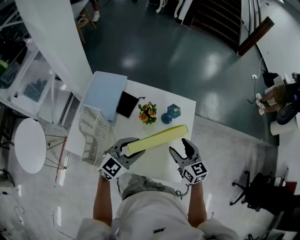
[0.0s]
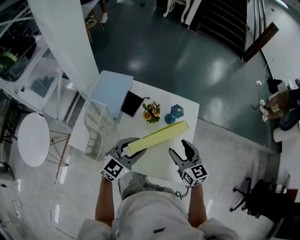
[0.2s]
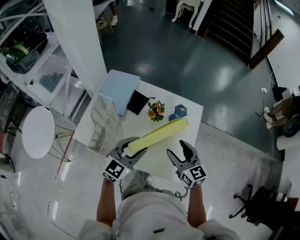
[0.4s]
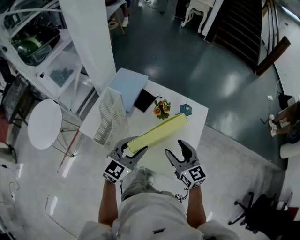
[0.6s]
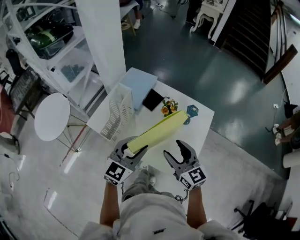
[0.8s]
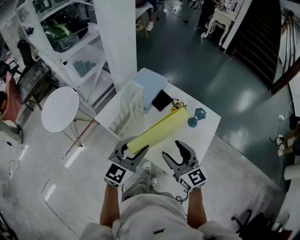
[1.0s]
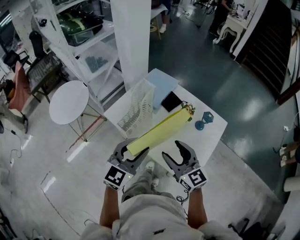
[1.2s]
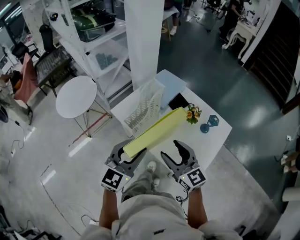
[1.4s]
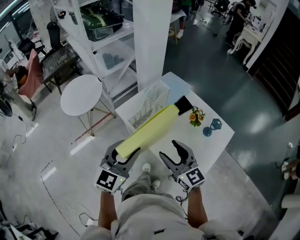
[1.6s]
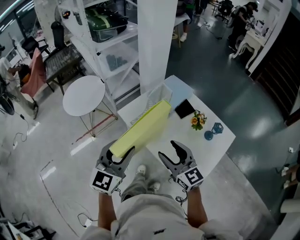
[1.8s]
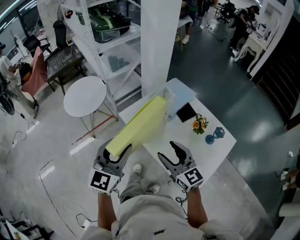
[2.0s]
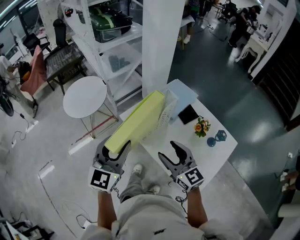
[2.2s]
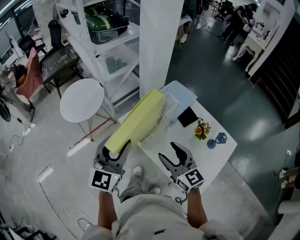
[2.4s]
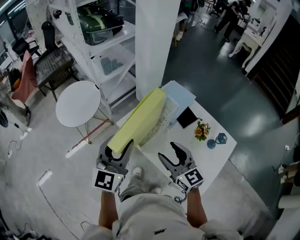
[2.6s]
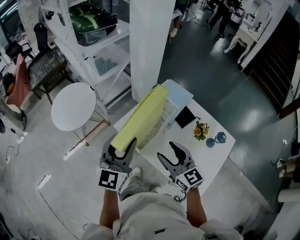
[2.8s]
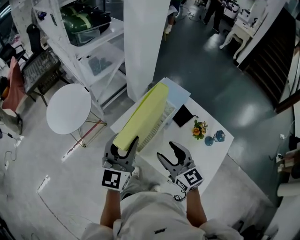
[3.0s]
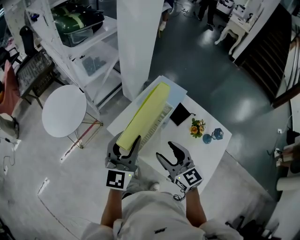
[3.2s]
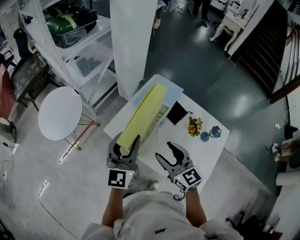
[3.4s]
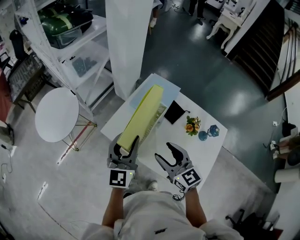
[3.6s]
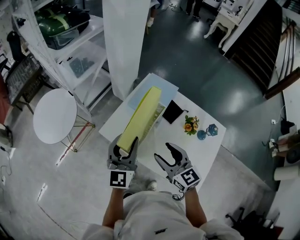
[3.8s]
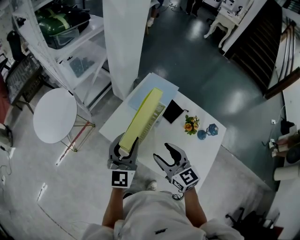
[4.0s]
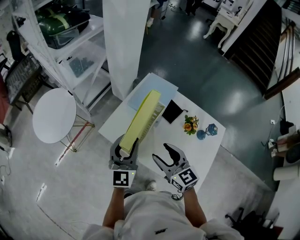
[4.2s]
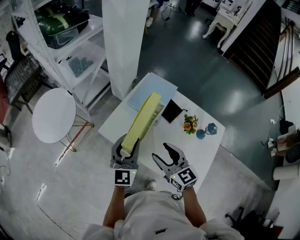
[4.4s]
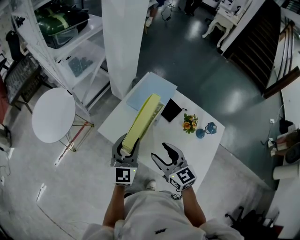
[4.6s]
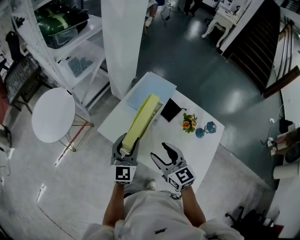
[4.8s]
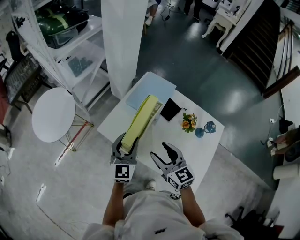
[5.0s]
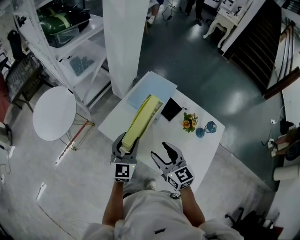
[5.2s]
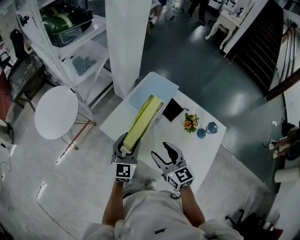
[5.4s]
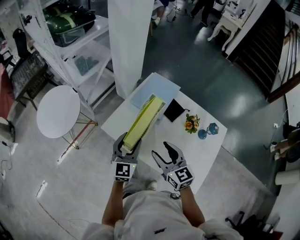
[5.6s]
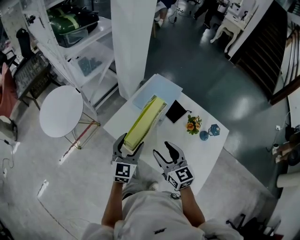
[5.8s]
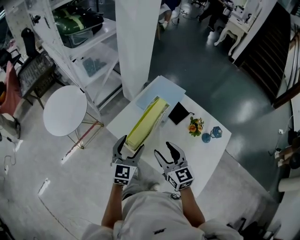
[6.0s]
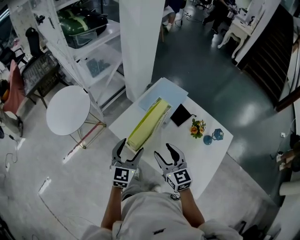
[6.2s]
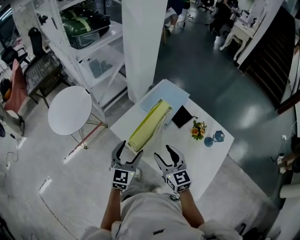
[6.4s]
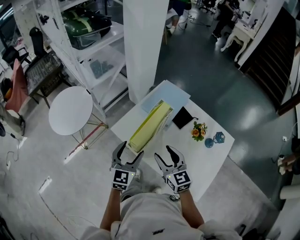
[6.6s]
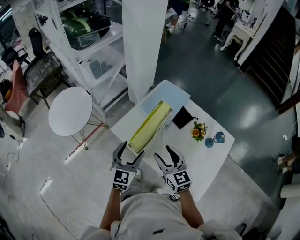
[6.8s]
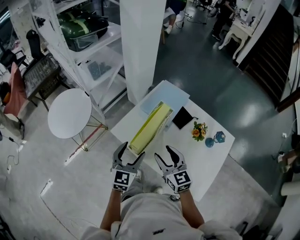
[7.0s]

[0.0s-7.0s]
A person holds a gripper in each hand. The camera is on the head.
0.0s to 1.4s: The left gripper moves some 25 cm, and turns by about 50 degrees; the right gripper shifts by about 30 cm, and swivels some 40 degrees.
1.4s to 2.8s: The grippers both shift forward and to the left by approximately 15 cm.
2.8s to 4.2s: The left gripper heads downward, forward and to the right, covering roughly 10 cm. The right gripper ends up some 5 cm from where it was.
4.2s to 5.6s: The left gripper shifts about 5 cm downward.
5.6s to 7.0s: The grippers stay close to where they were, moving slightly.

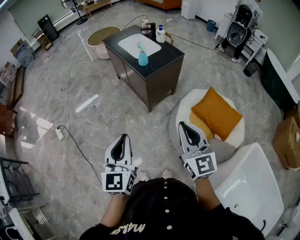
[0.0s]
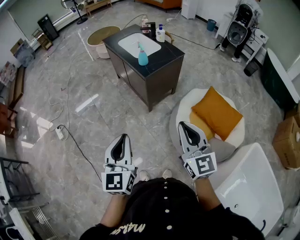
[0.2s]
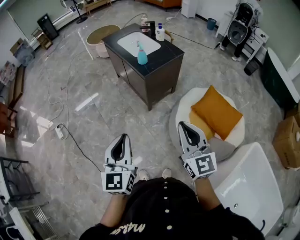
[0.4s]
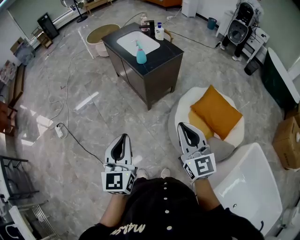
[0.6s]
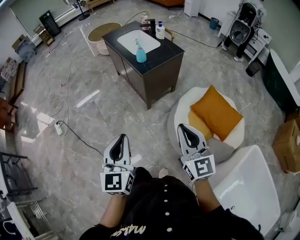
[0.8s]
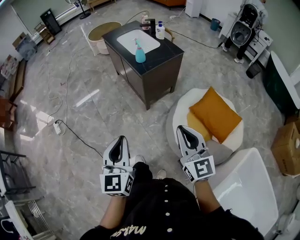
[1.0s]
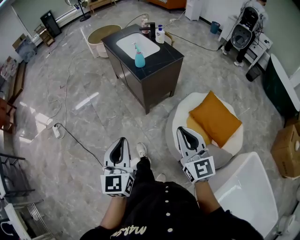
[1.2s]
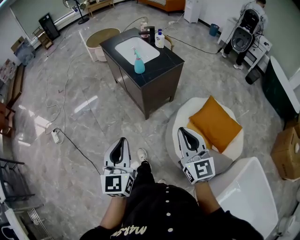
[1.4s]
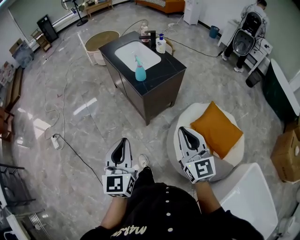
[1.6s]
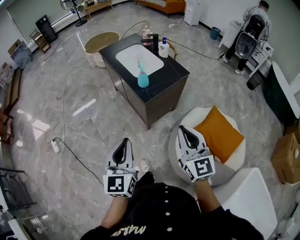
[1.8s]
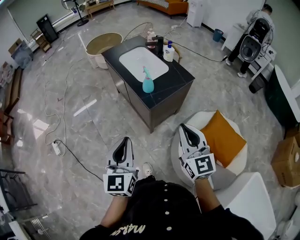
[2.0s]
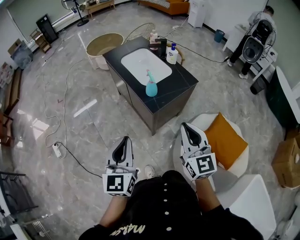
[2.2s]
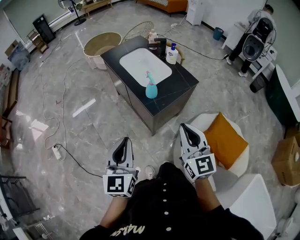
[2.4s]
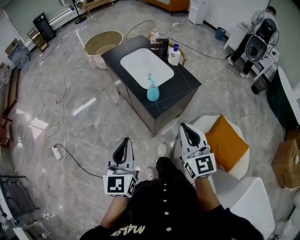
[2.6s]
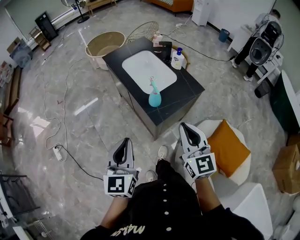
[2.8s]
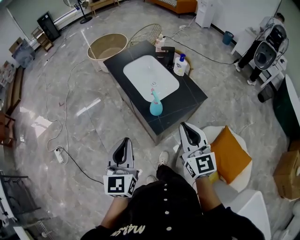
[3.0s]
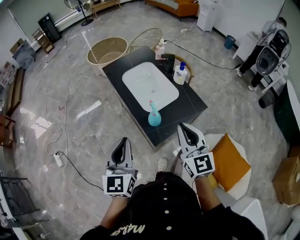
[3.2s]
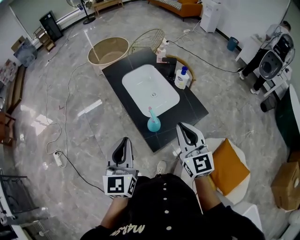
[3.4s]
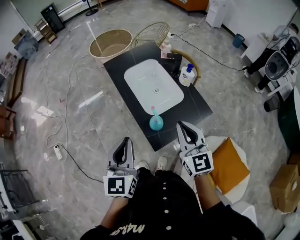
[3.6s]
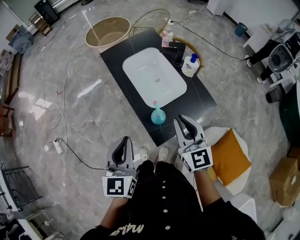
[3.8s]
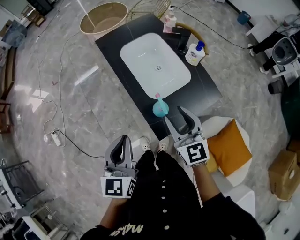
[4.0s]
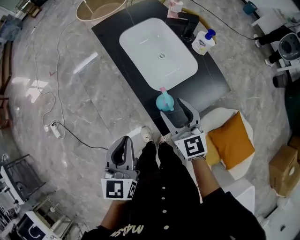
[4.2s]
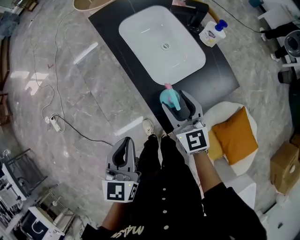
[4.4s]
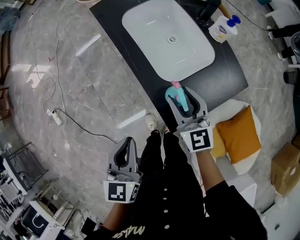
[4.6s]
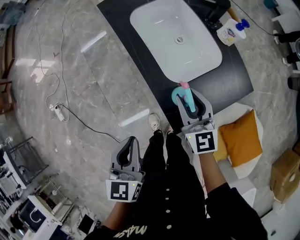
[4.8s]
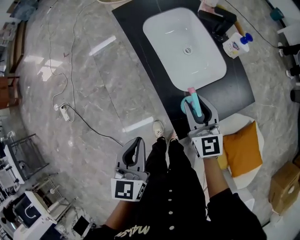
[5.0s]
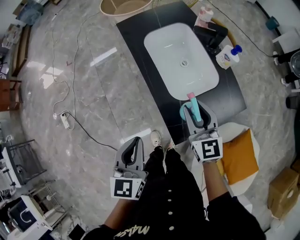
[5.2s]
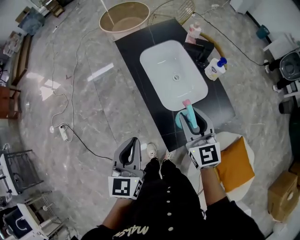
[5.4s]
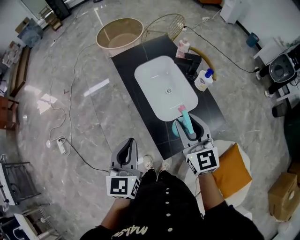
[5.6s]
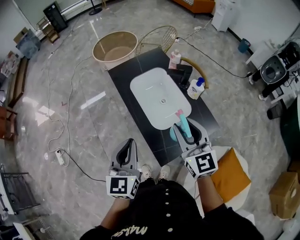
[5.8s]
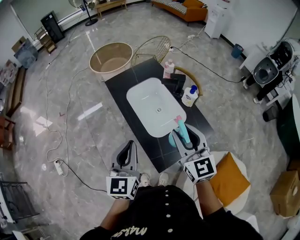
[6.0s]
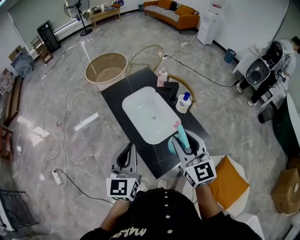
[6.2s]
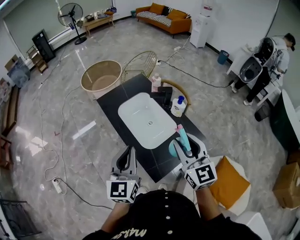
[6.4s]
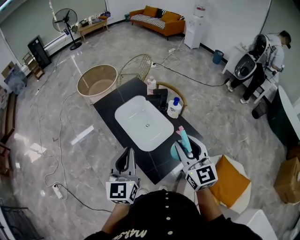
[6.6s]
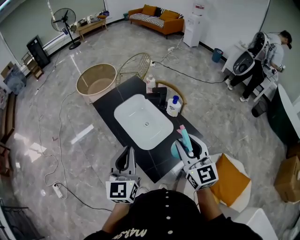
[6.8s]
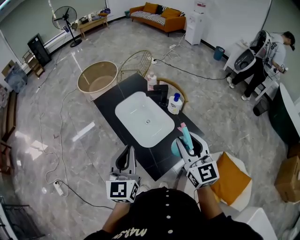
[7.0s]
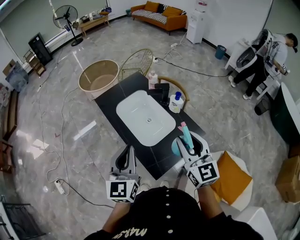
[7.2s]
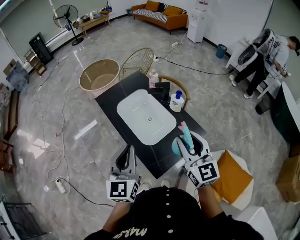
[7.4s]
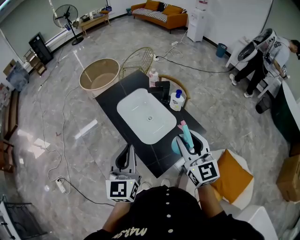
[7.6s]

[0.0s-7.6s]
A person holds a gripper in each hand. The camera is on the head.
0.0s to 1.6s: The grippers both shift forward by about 15 cm.
1.6s to 3.0s: The grippers both shift forward by approximately 30 cm.
3.0s to 4.6s: The left gripper travels downward and forward by roughly 20 cm, and rotates roughly 20 degrees, while the right gripper is displaced forward and downward by approximately 30 cm, and opens up.
4.6s to 6.0s: The left gripper is displaced upward and forward by roughly 20 cm, and turns by about 20 degrees, while the right gripper moves upward, some 25 cm.
6.0s to 7.6s: The right gripper goes about 5 cm to the right.

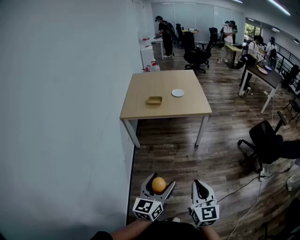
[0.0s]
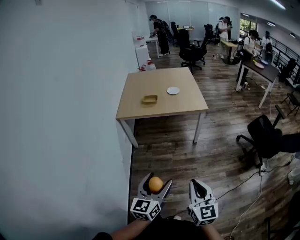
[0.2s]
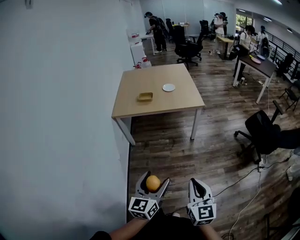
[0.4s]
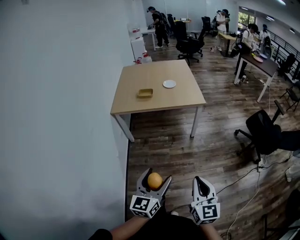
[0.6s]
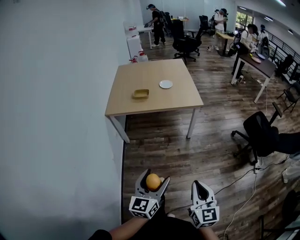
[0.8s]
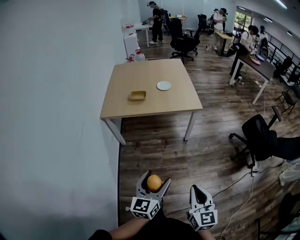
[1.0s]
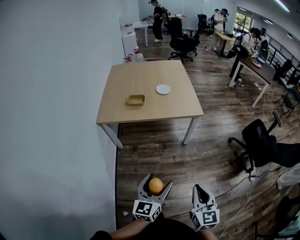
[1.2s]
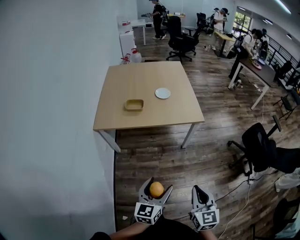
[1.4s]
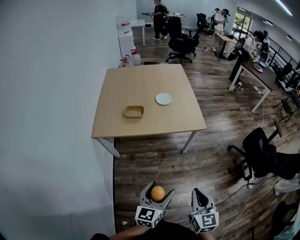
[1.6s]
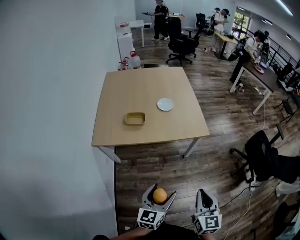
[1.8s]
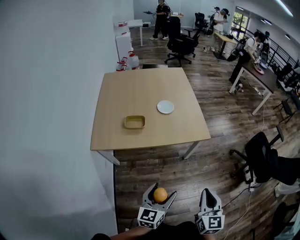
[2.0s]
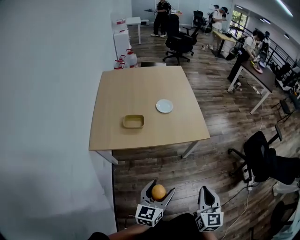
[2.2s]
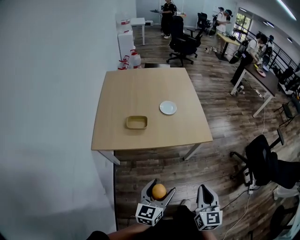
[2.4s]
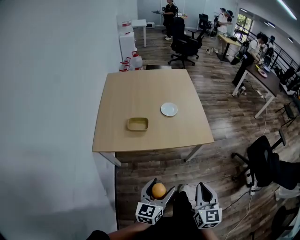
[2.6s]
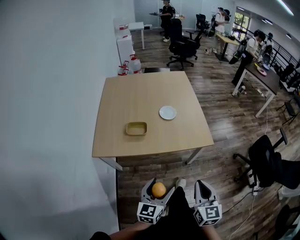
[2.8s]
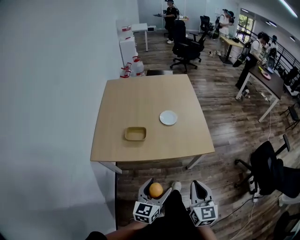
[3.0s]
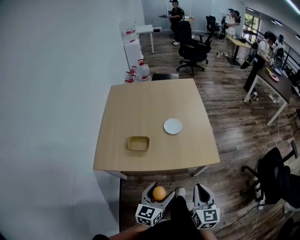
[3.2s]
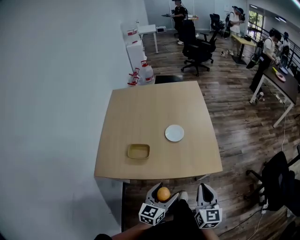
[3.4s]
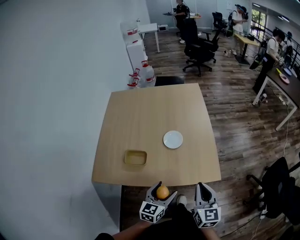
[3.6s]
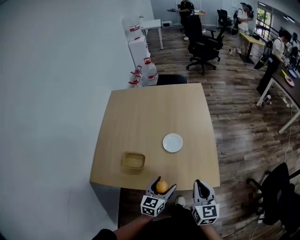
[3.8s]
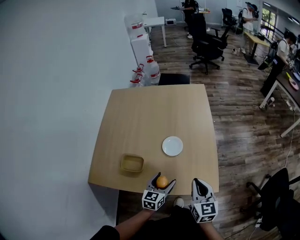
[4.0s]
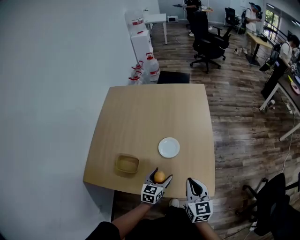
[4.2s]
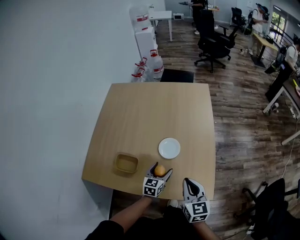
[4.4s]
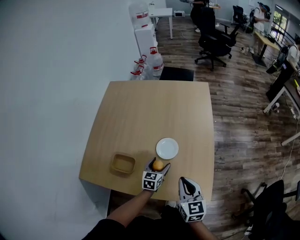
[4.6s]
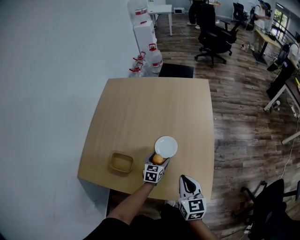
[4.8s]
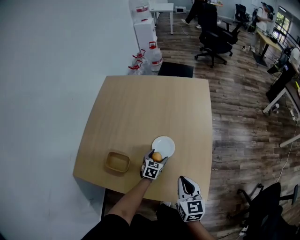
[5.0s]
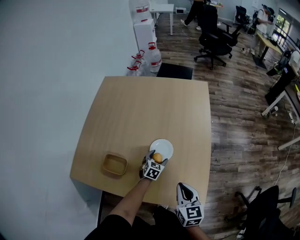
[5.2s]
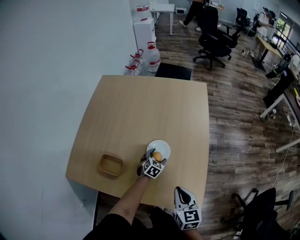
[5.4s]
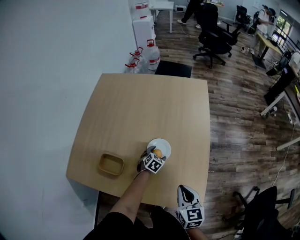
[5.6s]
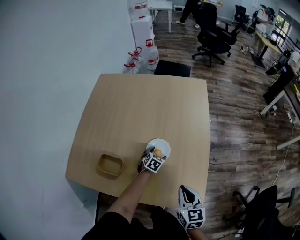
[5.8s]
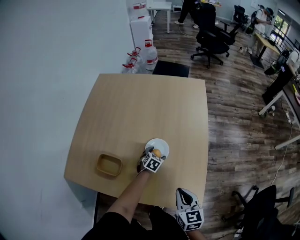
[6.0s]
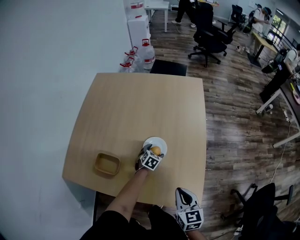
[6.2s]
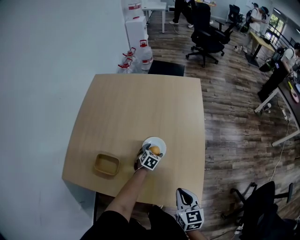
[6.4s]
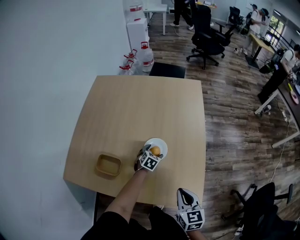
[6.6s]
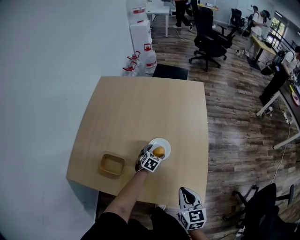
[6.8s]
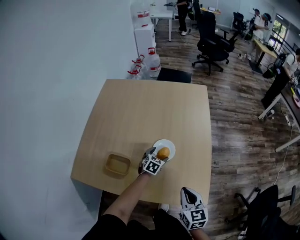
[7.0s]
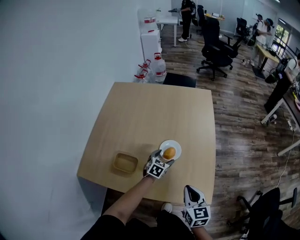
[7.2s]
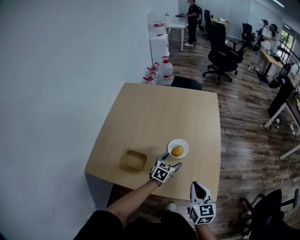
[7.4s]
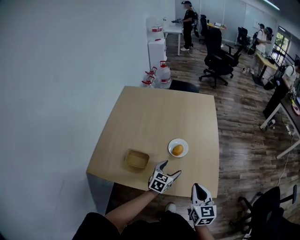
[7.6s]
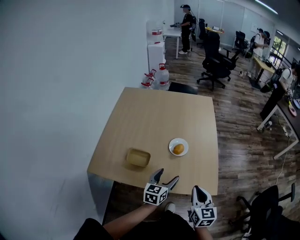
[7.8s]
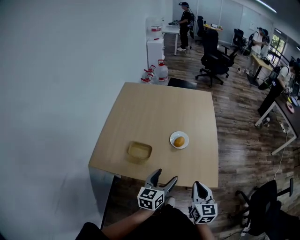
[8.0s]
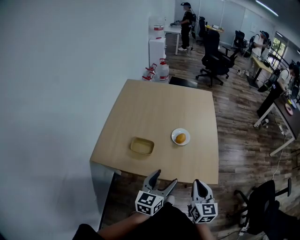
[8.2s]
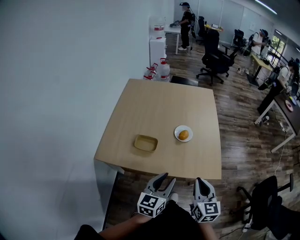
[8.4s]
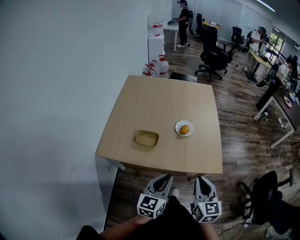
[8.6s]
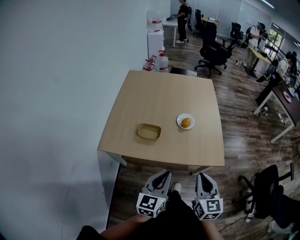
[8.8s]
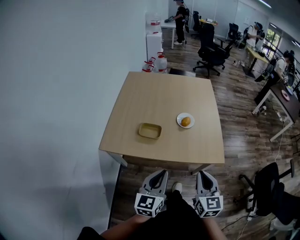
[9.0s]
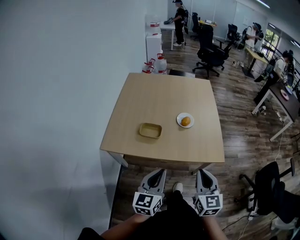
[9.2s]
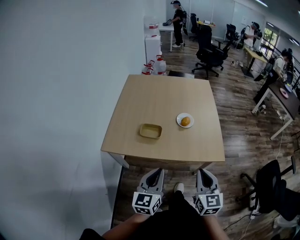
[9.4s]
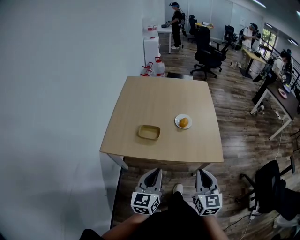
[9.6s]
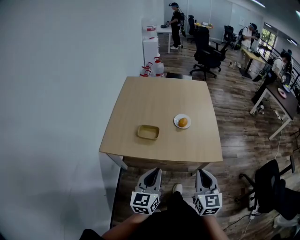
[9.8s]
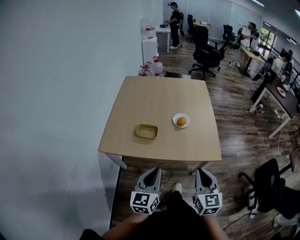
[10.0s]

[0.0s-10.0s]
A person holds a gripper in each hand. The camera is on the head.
0.0s to 1.4s: Both grippers move forward, roughly 25 cm.
1.4s to 2.8s: The two grippers go approximately 20 cm forward.
2.8s to 4.2s: Both grippers move forward, about 40 cm.
4.2s to 5.8s: The right gripper goes about 10 cm downward; the left gripper is displaced downward and forward by about 25 cm, and changes its angle by approximately 30 degrees.
5.8s to 7.2s: The right gripper moves about 5 cm. Meanwhile the left gripper heads upward, covering roughly 10 cm.
7.2s to 8.6s: The right gripper heads backward and upward, covering some 25 cm; the left gripper moves backward and upward, some 50 cm, angles its fingers upward, by about 30 degrees, and closes its fingers.
8.6s to 10.0s: The left gripper heads backward and to the left, covering roughly 10 cm; the right gripper shifts approximately 5 cm backward.
